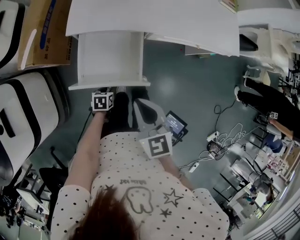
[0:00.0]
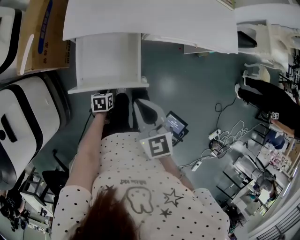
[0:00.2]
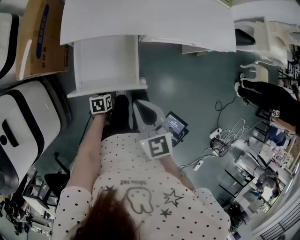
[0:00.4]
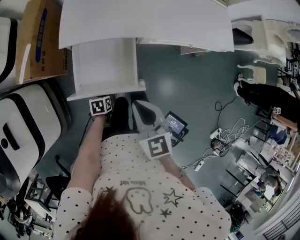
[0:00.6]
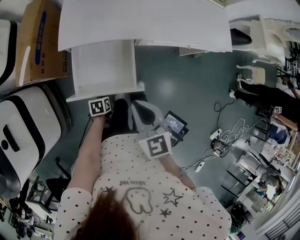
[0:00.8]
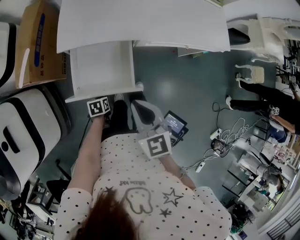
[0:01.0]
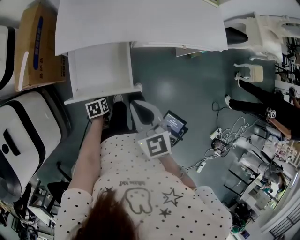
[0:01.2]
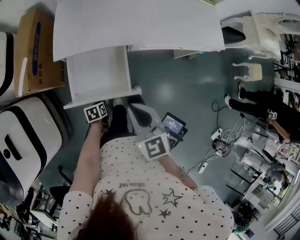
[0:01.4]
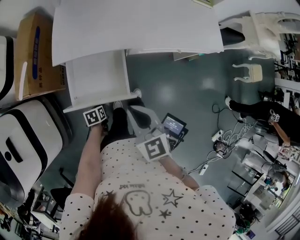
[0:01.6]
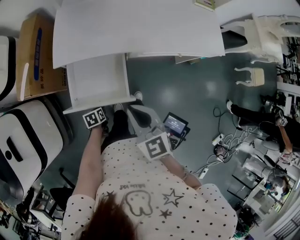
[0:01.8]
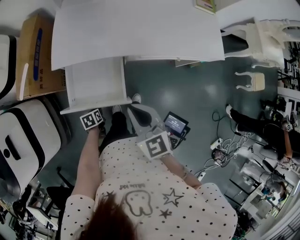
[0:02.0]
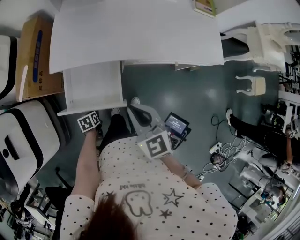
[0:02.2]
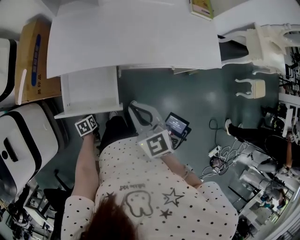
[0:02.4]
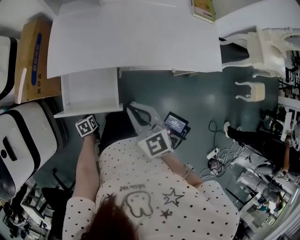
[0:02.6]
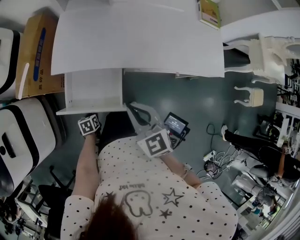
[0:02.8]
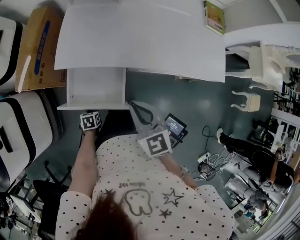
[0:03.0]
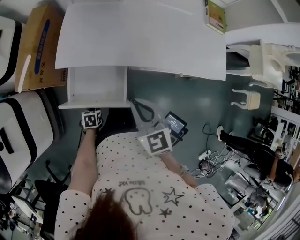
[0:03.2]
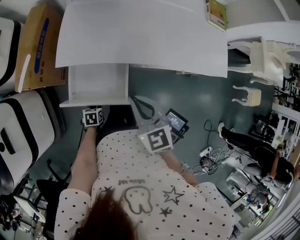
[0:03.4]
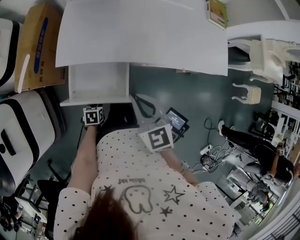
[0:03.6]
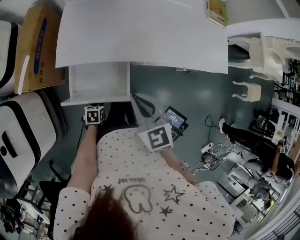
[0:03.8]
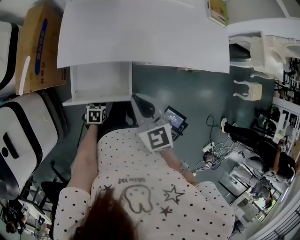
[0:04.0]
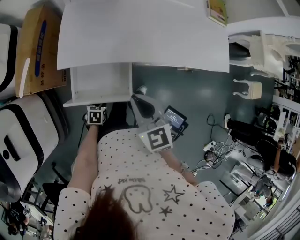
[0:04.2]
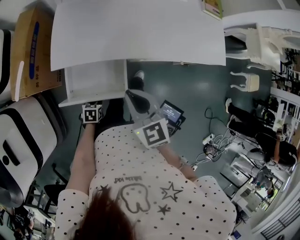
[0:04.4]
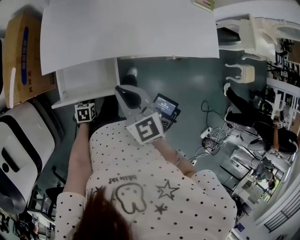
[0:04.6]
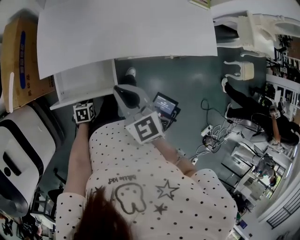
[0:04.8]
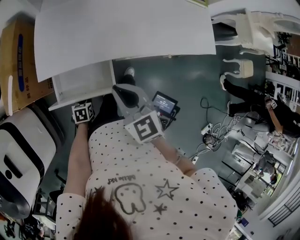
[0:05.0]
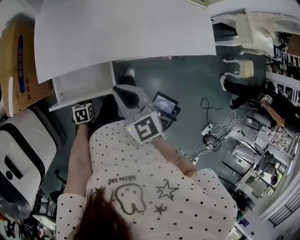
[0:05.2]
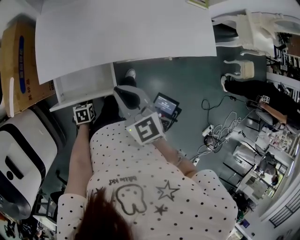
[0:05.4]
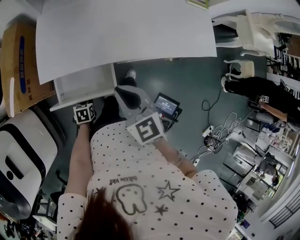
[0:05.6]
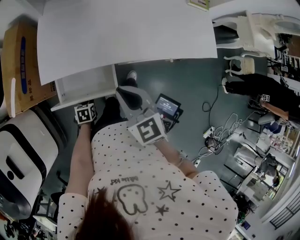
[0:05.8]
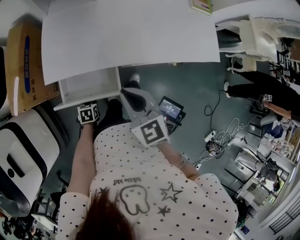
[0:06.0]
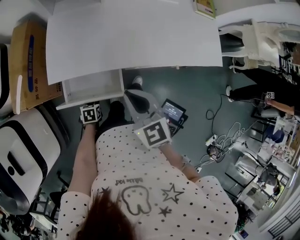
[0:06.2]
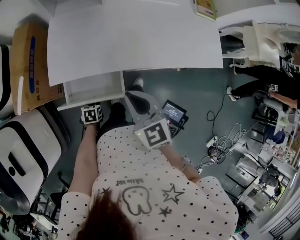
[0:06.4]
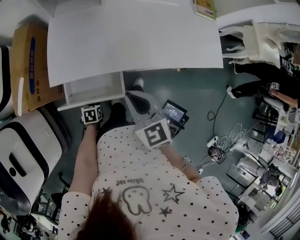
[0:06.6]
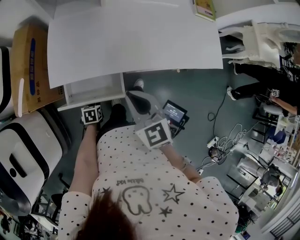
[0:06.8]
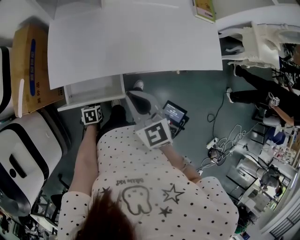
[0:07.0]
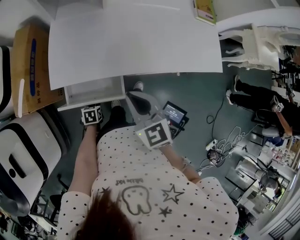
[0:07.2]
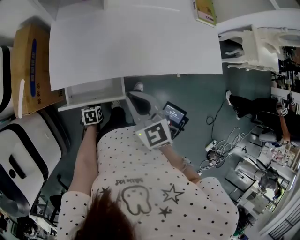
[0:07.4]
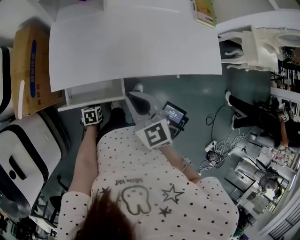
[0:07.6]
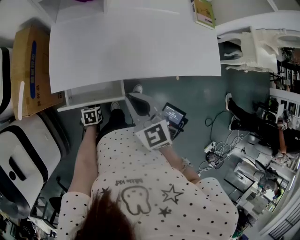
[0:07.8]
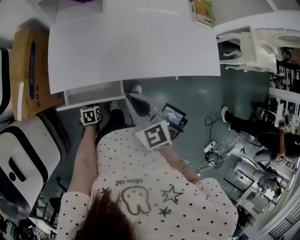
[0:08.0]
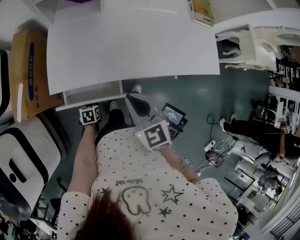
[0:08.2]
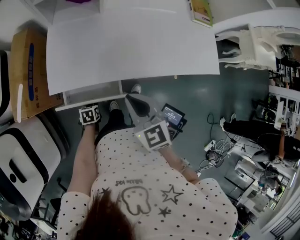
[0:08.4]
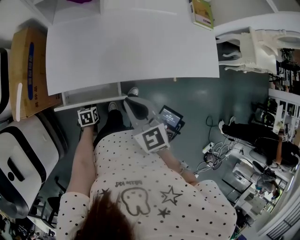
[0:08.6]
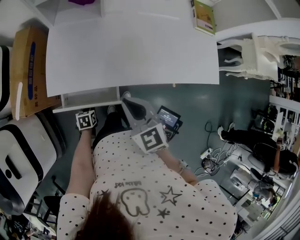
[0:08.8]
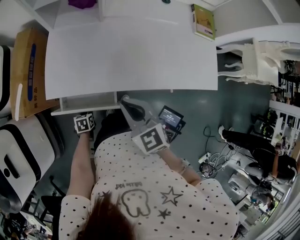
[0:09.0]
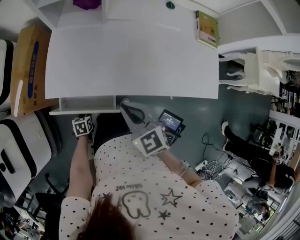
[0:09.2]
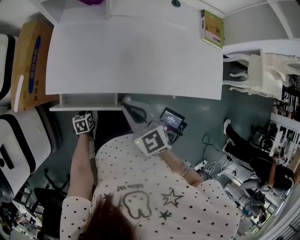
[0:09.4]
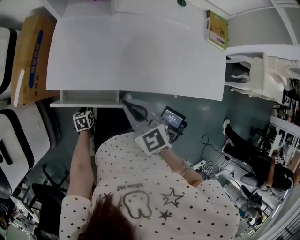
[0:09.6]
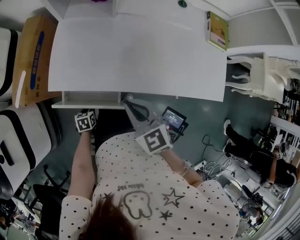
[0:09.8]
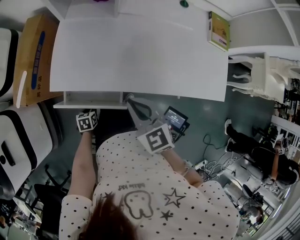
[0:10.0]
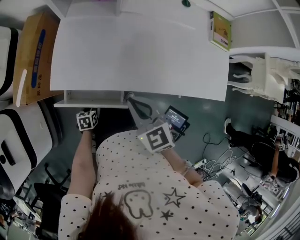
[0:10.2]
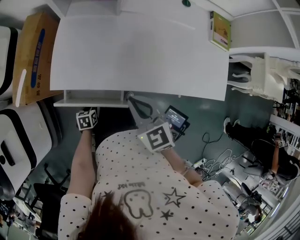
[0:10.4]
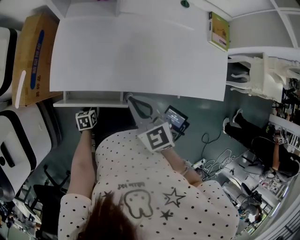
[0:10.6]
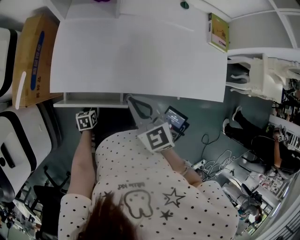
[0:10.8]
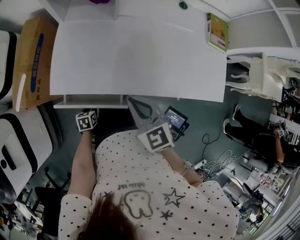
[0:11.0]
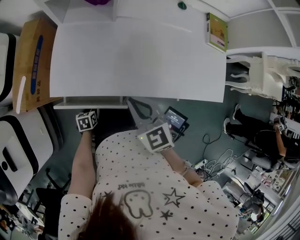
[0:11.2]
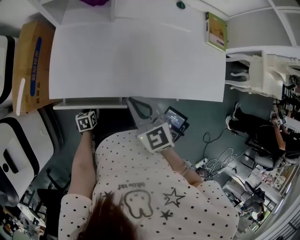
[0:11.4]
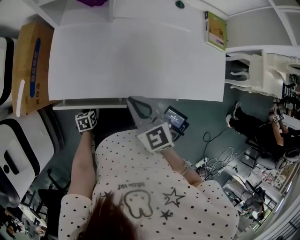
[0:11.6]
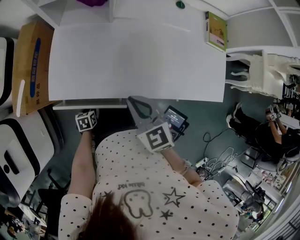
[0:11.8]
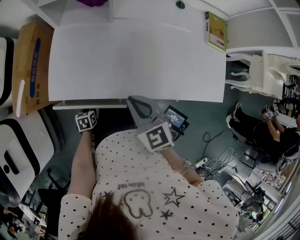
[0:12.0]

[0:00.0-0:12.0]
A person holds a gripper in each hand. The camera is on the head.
0:00.0 to 0:01.6: The grippers make only small movements.
0:01.6 to 0:03.0: The right gripper is displaced forward by approximately 10 cm.
0:03.0 to 0:04.4: The right gripper ends up approximately 5 cm from where it was.
0:04.4 to 0:06.0: There are only small adjustments of the grippers.
0:06.0 to 0:07.6: The grippers make only small movements.
0:07.6 to 0:10.4: The grippers stay close to where they were, moving slightly.
0:10.4 to 0:12.0: There are only small adjustments of the grippers.

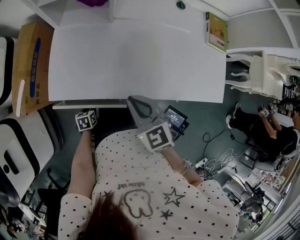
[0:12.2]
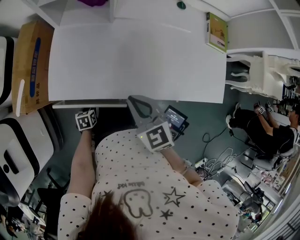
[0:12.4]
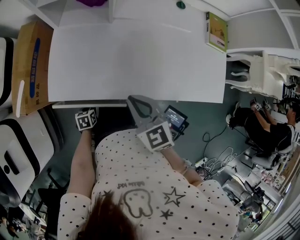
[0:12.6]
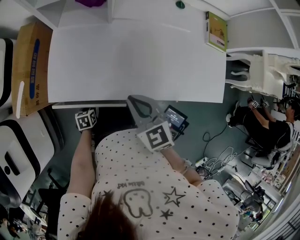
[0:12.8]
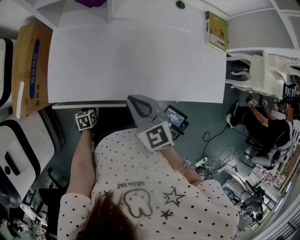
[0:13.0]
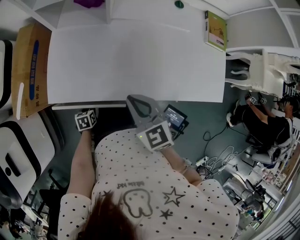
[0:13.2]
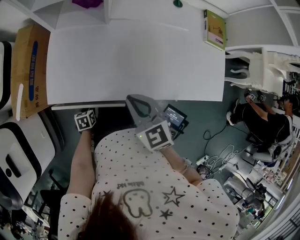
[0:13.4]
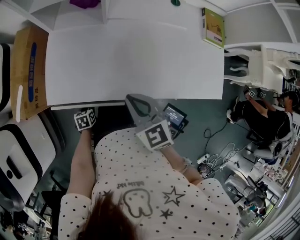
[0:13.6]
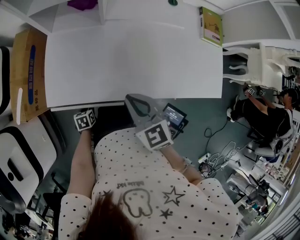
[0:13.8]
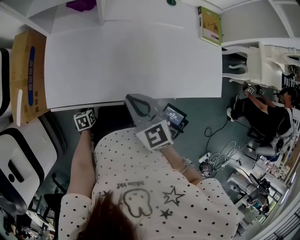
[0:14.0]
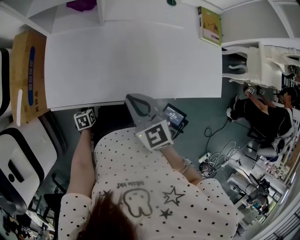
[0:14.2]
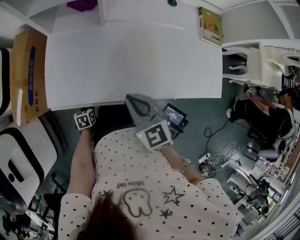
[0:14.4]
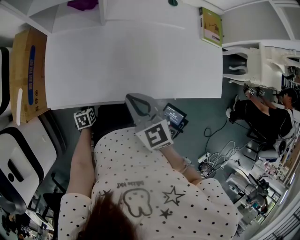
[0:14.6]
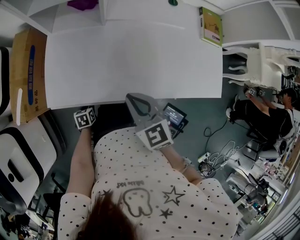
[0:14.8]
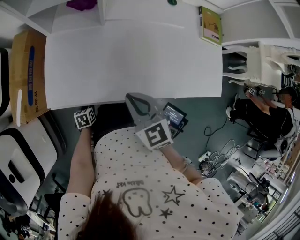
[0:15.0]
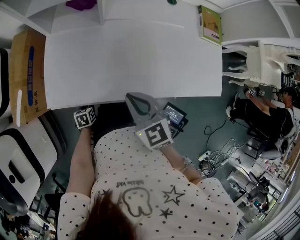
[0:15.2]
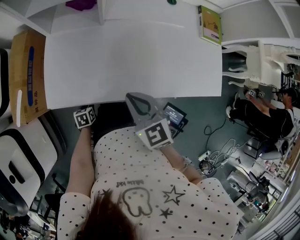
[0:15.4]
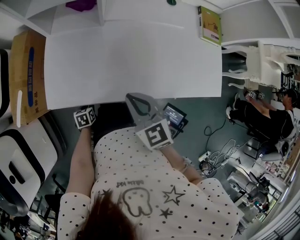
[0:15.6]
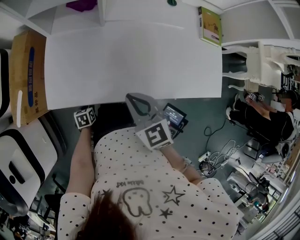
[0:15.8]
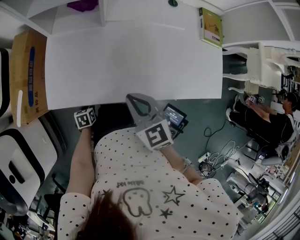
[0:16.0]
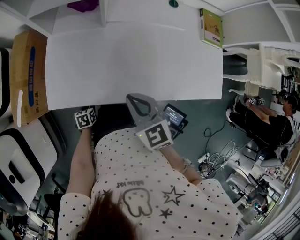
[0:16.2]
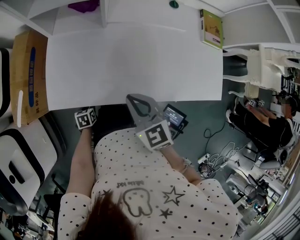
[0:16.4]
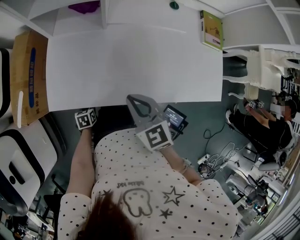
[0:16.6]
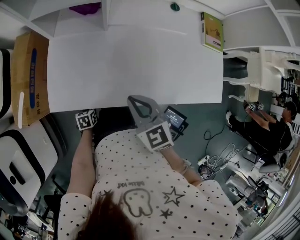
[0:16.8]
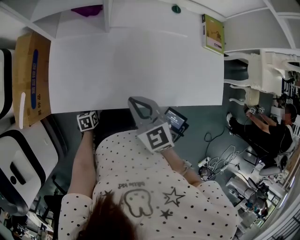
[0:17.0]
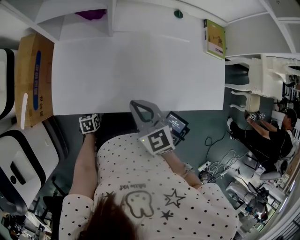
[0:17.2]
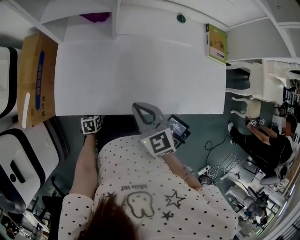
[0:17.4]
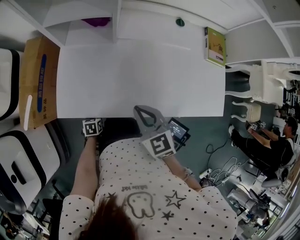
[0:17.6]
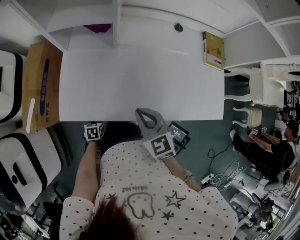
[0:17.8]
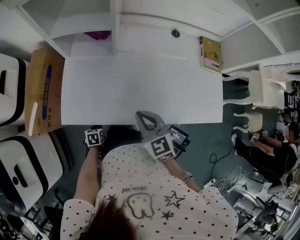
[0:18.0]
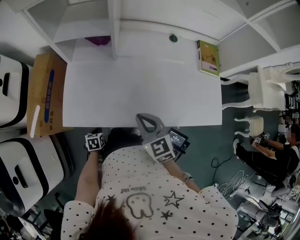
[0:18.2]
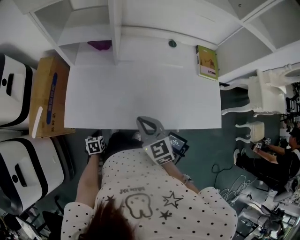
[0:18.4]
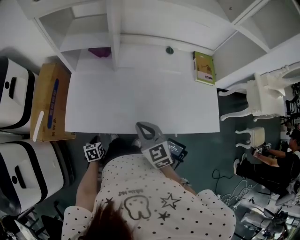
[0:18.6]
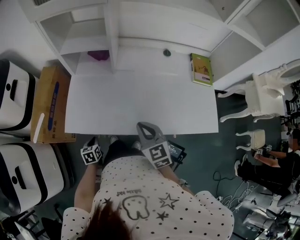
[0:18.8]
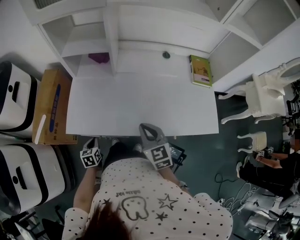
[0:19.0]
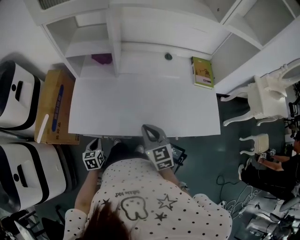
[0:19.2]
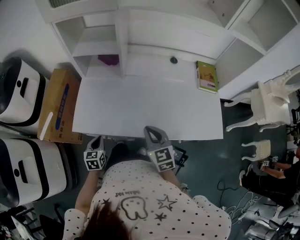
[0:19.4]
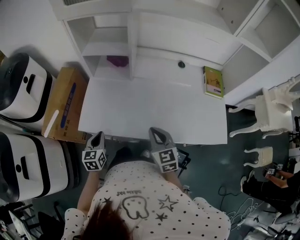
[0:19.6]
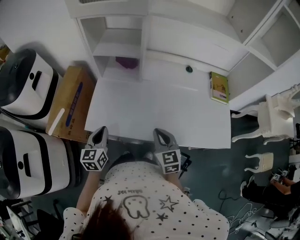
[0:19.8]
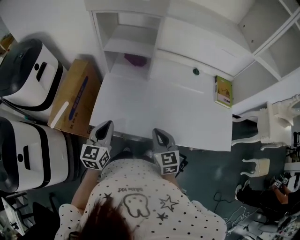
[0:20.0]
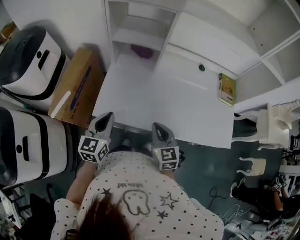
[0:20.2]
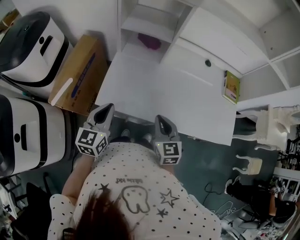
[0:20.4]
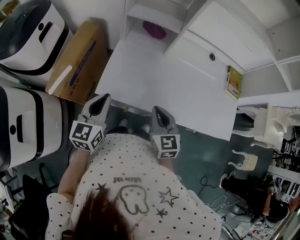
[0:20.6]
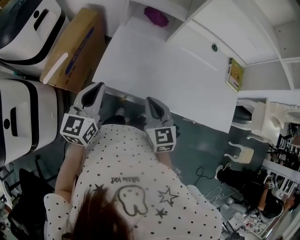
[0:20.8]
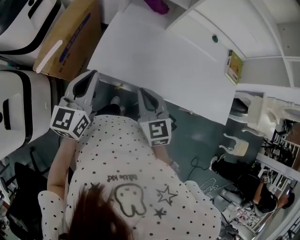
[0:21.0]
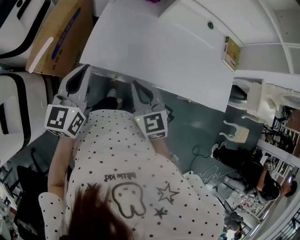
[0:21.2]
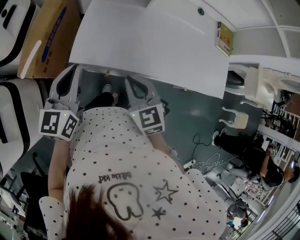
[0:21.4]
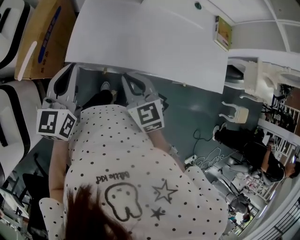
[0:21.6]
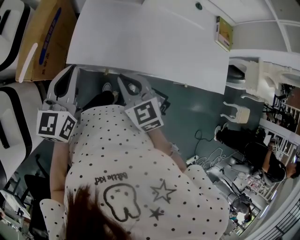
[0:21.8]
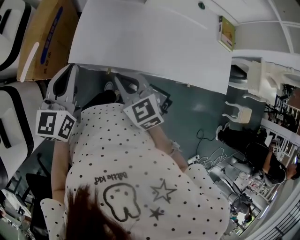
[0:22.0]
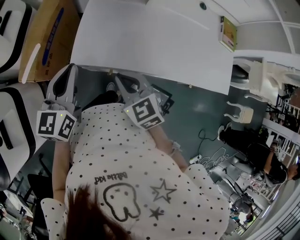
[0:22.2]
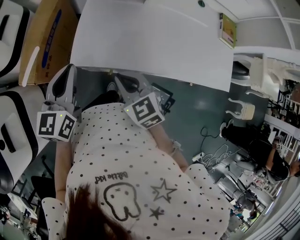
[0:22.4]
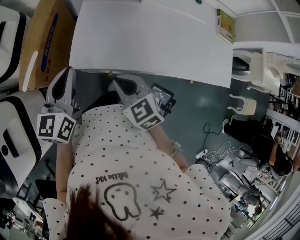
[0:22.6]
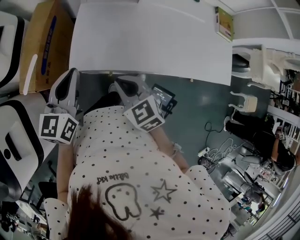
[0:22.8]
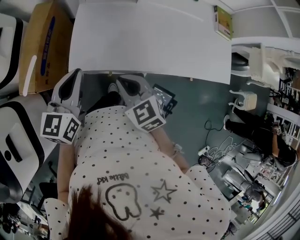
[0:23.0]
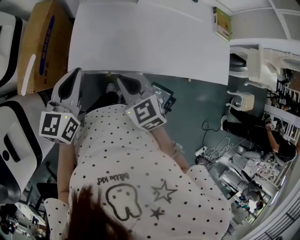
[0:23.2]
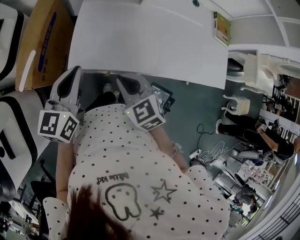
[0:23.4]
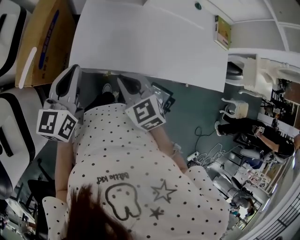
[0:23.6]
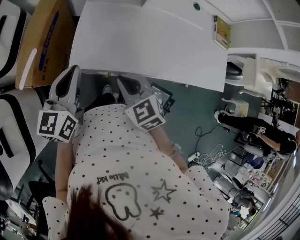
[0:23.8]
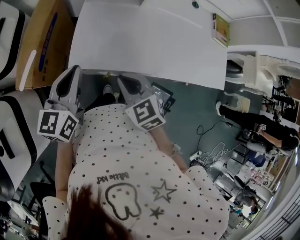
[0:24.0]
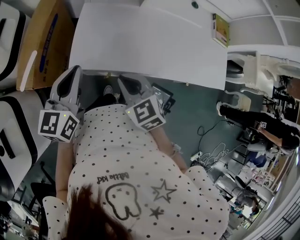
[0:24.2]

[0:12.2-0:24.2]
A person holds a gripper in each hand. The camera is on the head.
0:12.2 to 0:15.2: The grippers move only a little.
0:15.2 to 0:16.6: Both grippers stay put.
0:16.6 to 0:18.2: There are only small adjustments of the grippers.
0:18.2 to 0:19.8: The left gripper travels upward by roughly 30 cm, and points its fingers some 40 degrees further upward.
0:19.8 to 0:21.2: The right gripper is displaced to the left by roughly 20 cm. Meanwhile the left gripper is displaced to the left and upward by roughly 10 cm.
0:21.2 to 0:24.2: The grippers make only small movements.
